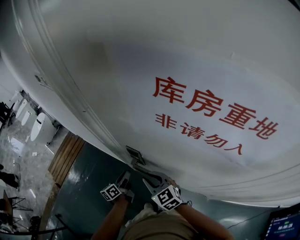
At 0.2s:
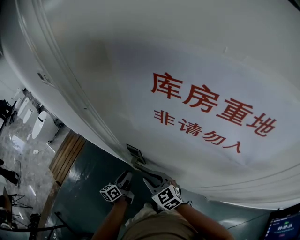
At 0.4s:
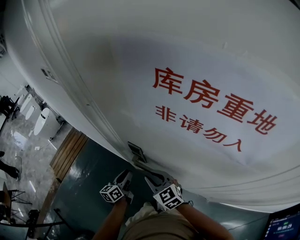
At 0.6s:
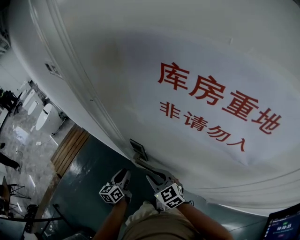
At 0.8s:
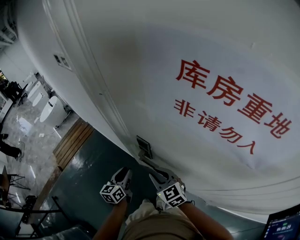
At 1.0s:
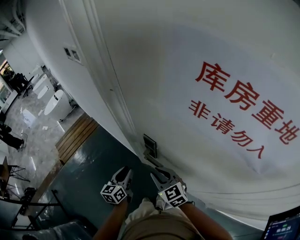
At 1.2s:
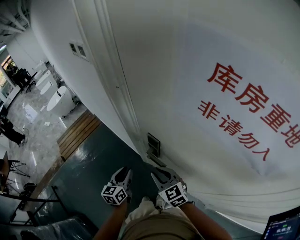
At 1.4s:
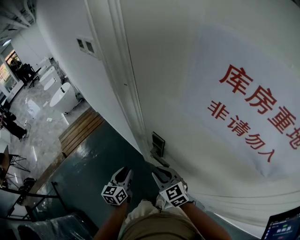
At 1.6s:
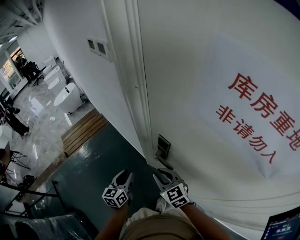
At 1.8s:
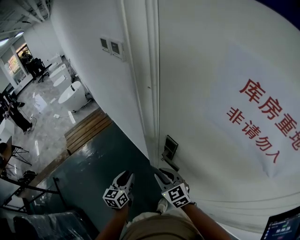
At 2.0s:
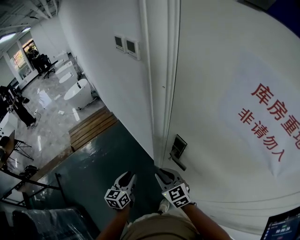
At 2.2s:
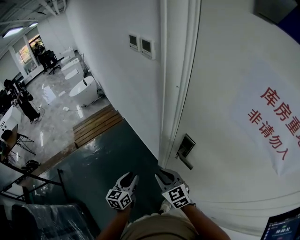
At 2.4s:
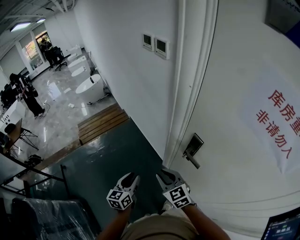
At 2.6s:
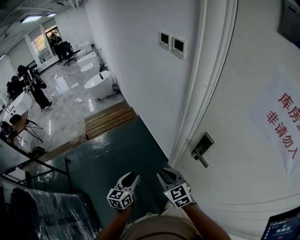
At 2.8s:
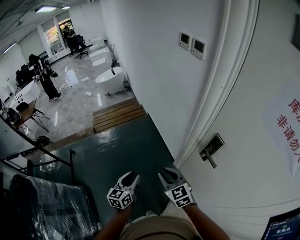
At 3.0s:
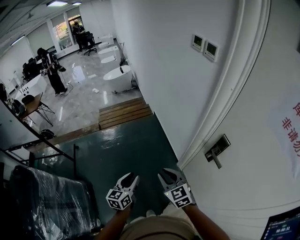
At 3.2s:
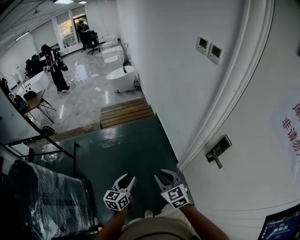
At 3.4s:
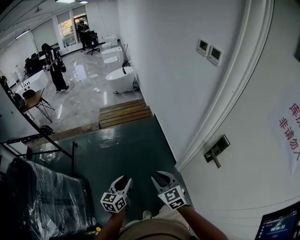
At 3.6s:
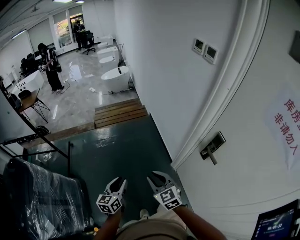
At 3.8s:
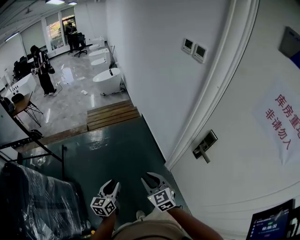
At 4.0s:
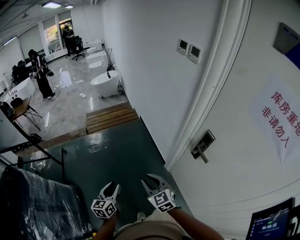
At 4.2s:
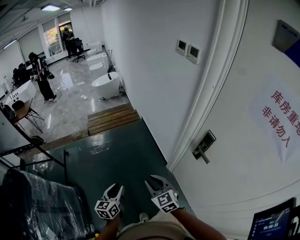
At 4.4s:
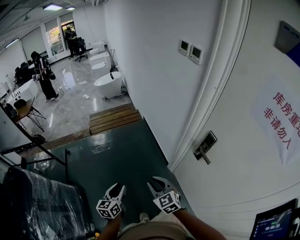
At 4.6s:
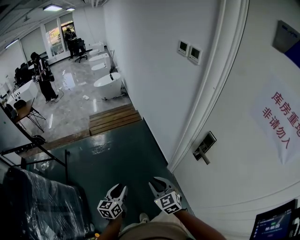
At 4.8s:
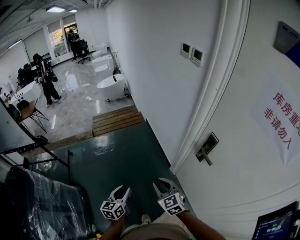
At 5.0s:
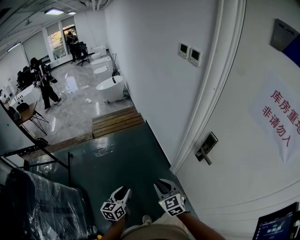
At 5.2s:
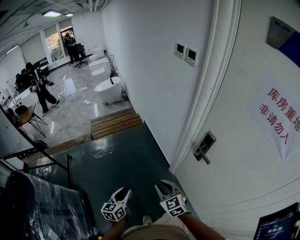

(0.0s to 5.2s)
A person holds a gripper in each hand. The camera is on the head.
0.0s - 1.8s: The right gripper heads to the left, covering some 10 cm, while the left gripper heads to the left, backward and upward, covering approximately 15 cm, and rotates some 40 degrees.
1.8s - 3.4s: The right gripper moves to the left, roughly 30 cm, and rotates approximately 20 degrees. The left gripper heads to the left and backward, covering some 30 cm, and rotates some 20 degrees.
3.4s - 5.2s: The left gripper ends up some 5 cm from where it was, while the right gripper is displaced to the right by approximately 5 cm.

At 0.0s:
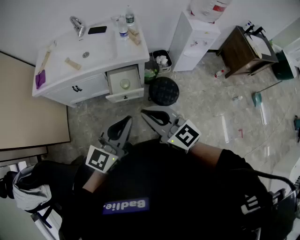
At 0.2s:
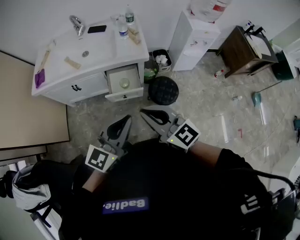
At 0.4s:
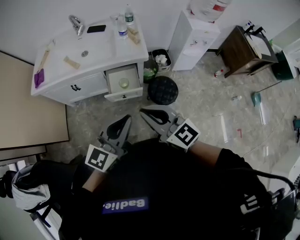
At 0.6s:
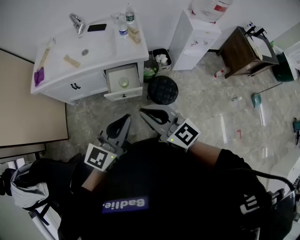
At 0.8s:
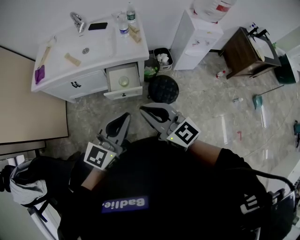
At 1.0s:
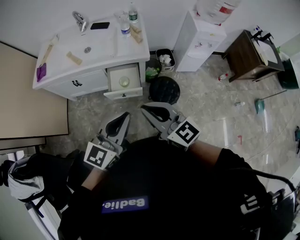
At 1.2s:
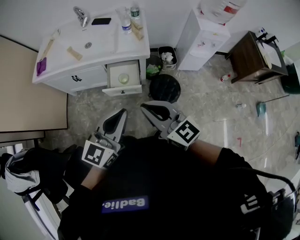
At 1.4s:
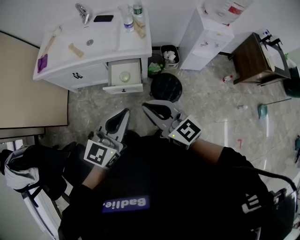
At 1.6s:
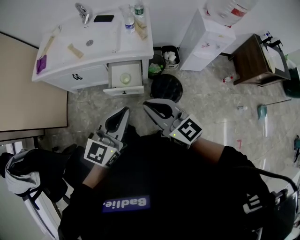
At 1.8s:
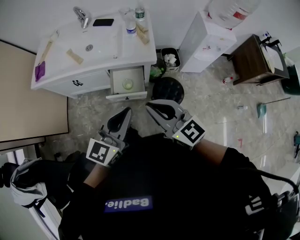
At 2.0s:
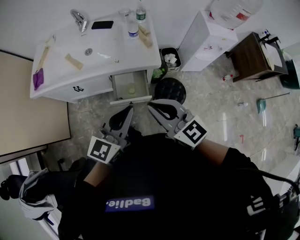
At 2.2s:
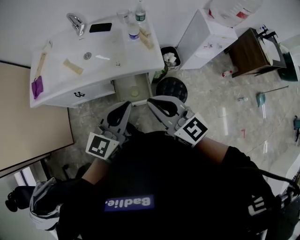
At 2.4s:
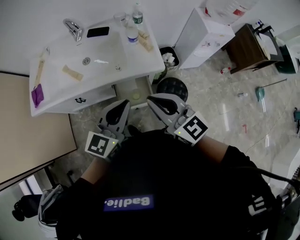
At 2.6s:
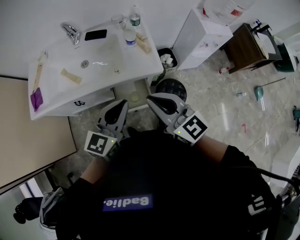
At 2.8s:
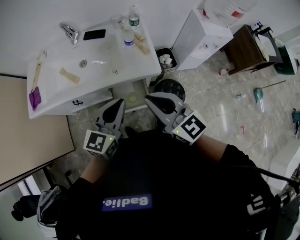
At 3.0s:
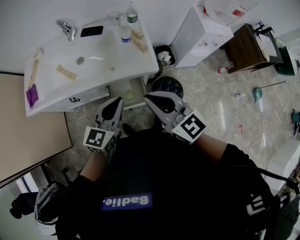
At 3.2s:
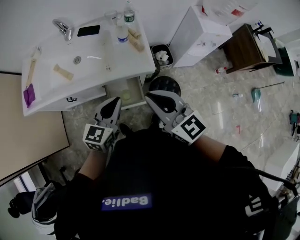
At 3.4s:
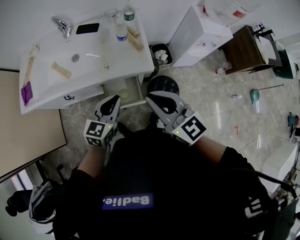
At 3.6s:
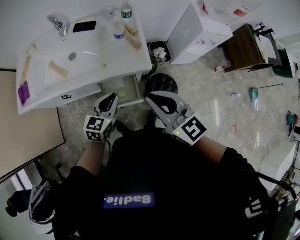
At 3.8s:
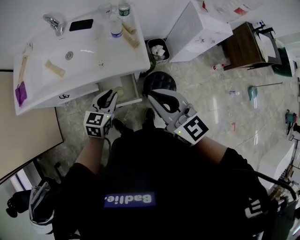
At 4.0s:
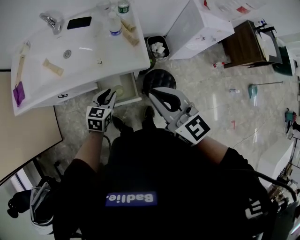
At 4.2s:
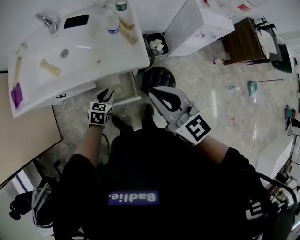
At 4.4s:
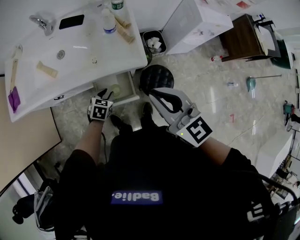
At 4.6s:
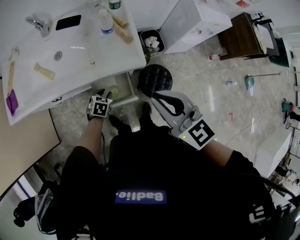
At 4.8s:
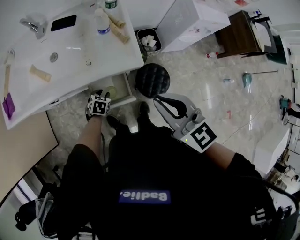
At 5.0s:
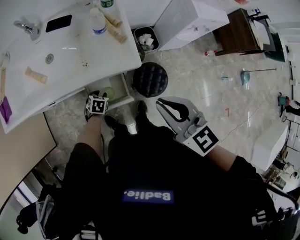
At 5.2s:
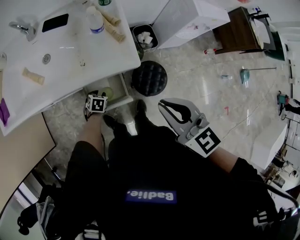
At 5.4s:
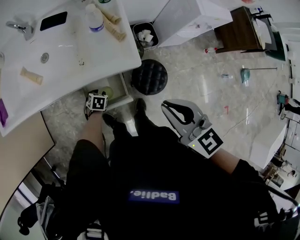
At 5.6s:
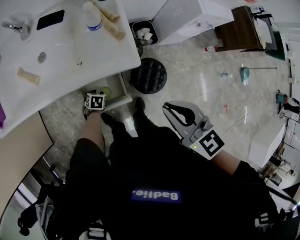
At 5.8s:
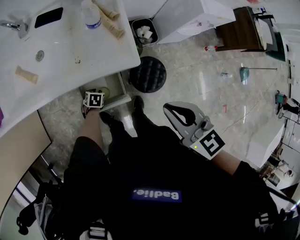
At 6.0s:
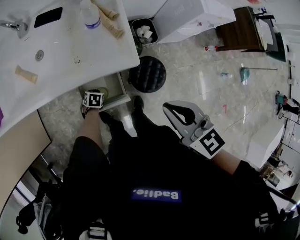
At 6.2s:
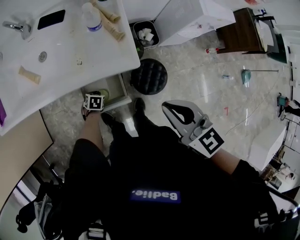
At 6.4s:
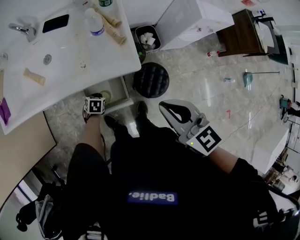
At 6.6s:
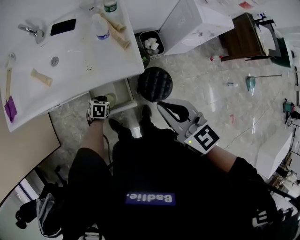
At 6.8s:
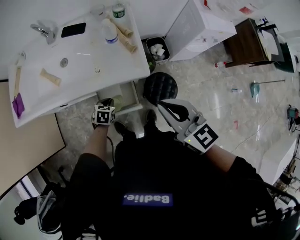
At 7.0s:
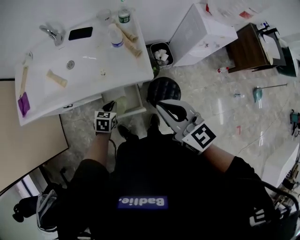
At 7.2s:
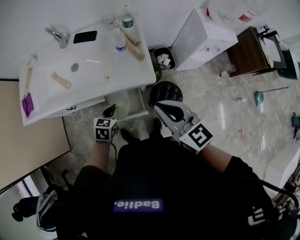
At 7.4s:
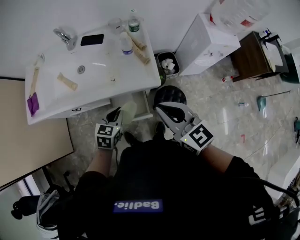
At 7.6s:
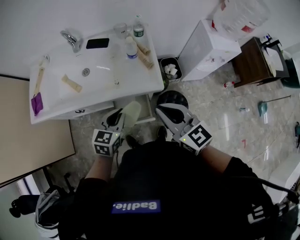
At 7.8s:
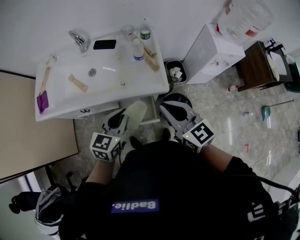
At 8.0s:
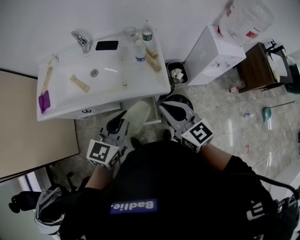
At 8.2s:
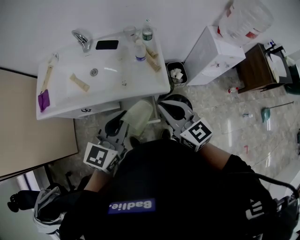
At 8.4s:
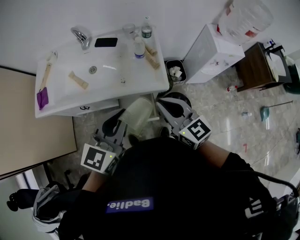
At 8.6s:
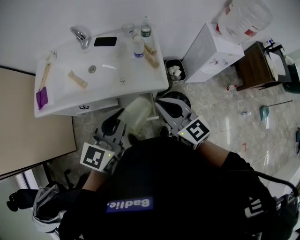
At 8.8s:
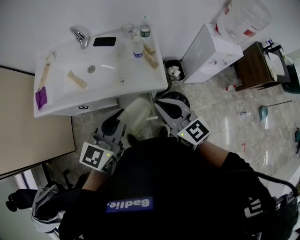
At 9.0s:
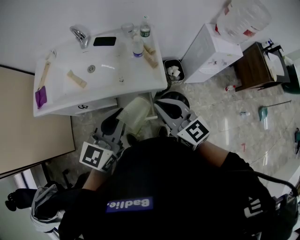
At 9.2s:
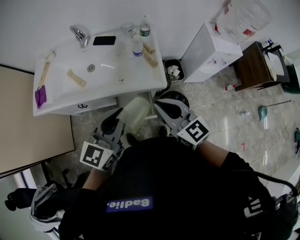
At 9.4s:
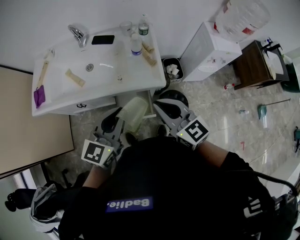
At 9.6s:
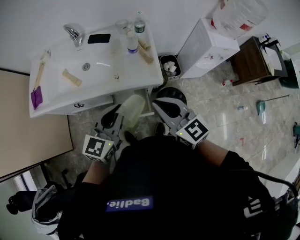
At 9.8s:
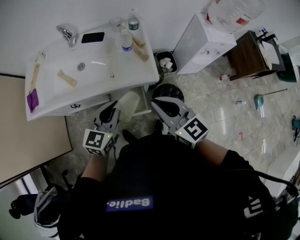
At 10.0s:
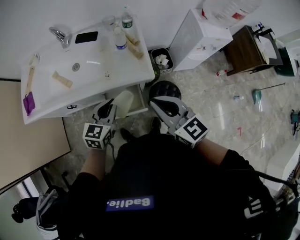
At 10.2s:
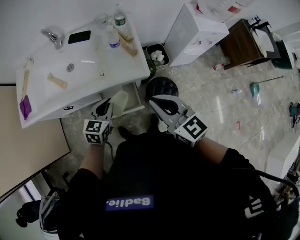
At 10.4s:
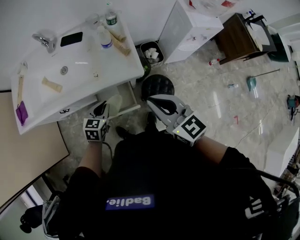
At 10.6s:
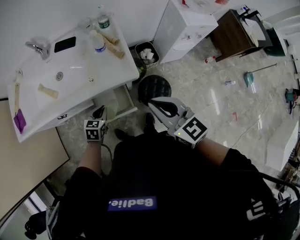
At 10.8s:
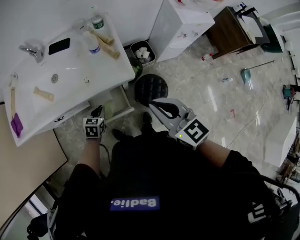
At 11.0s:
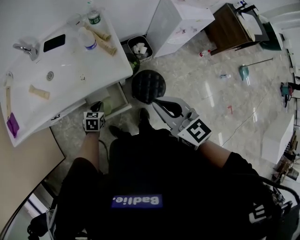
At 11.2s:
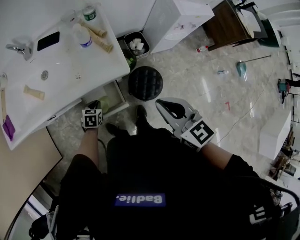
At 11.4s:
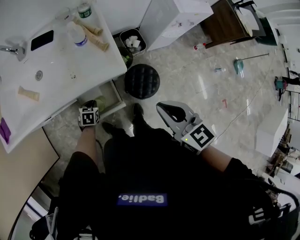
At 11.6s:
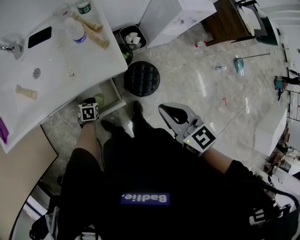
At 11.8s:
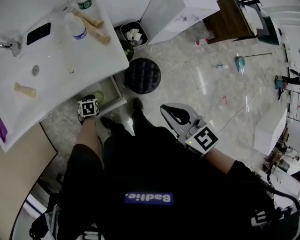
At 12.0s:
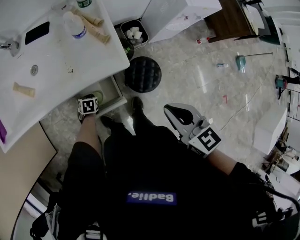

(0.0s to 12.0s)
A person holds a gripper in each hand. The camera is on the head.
0.0s - 1.6s: The left gripper moves forward, roughly 5 cm; the right gripper travels to the right and forward by roughly 10 cm.
1.6s - 3.0s: The right gripper moves forward, some 20 cm, while the left gripper moves forward and to the left, approximately 25 cm.
3.0s - 4.4s: The left gripper travels downward by about 30 cm, points its fingers about 40 degrees further downward, and opens its fingers, while the right gripper is displaced to the right by approximately 5 cm.
4.4s - 6.0s: The left gripper moves downward, roughly 15 cm, rotates roughly 20 degrees, and closes. Meanwhile the right gripper moves downward, roughly 5 cm.
6.0s - 7.6s: The left gripper goes approximately 40 cm upward, and angles its fingers upward, by approximately 40 degrees. Meanwhile the right gripper changes place by roughly 10 cm.
7.6s - 9.0s: The left gripper goes approximately 15 cm upward, and swivels roughly 20 degrees.
9.0s - 10.4s: The right gripper moves to the right, roughly 5 cm. Meanwhile the left gripper is displaced downward by about 25 cm, and tilts its fingers roughly 30 degrees downward.
10.4s - 12.0s: The left gripper heads downward, covering about 25 cm, and angles its fingers downward, by some 30 degrees; the right gripper moves approximately 10 cm, and changes its angle by approximately 20 degrees.

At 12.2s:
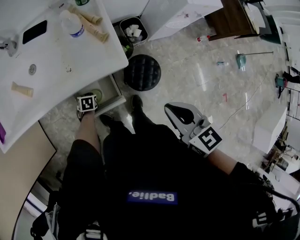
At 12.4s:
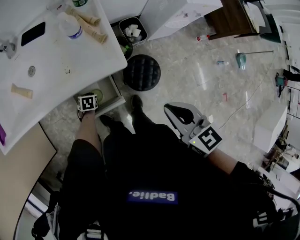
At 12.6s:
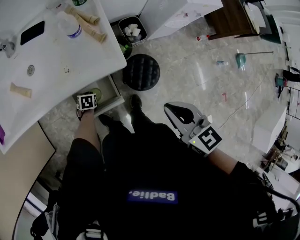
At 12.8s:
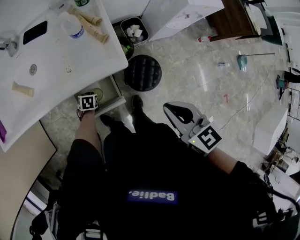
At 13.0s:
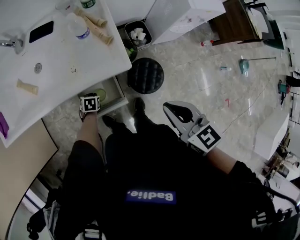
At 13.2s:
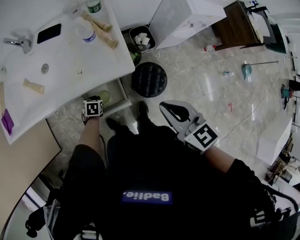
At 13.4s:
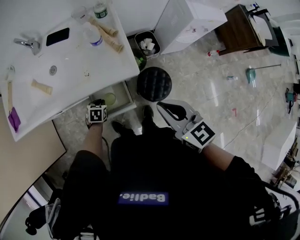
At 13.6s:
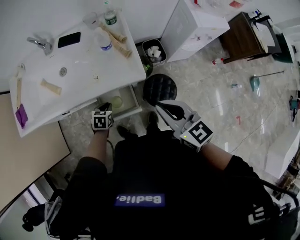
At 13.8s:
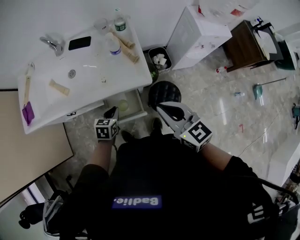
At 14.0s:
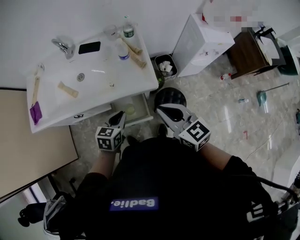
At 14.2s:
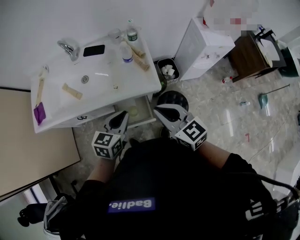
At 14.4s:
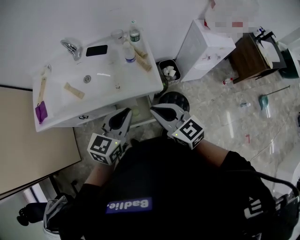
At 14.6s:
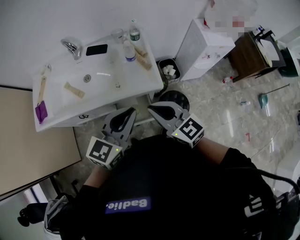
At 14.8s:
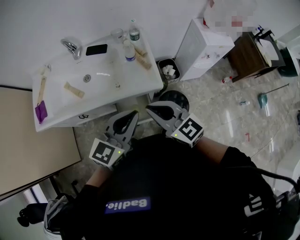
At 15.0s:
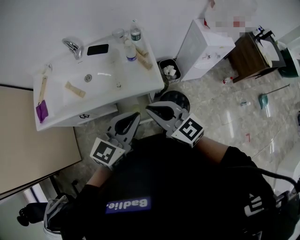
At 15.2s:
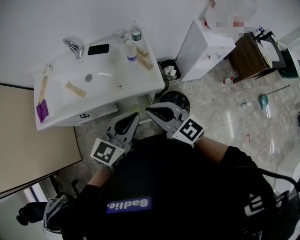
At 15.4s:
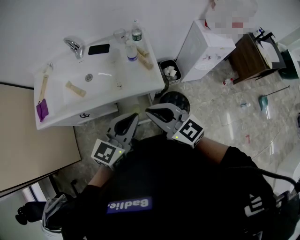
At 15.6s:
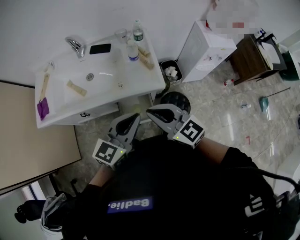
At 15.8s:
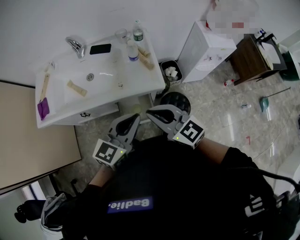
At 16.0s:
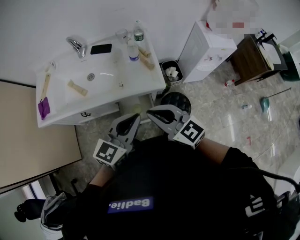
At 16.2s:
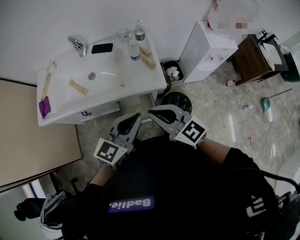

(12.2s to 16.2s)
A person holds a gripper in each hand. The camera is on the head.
12.2s - 13.6s: The right gripper shifts by about 10 cm; the left gripper goes some 15 cm upward.
13.6s - 14.8s: The left gripper moves upward, about 40 cm, and tips its fingers upward by about 50 degrees; the right gripper is displaced to the left and upward by roughly 15 cm.
14.8s - 16.2s: The grippers move only a little.

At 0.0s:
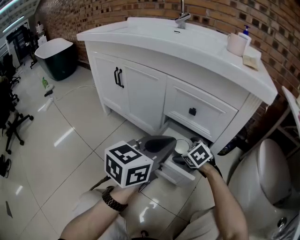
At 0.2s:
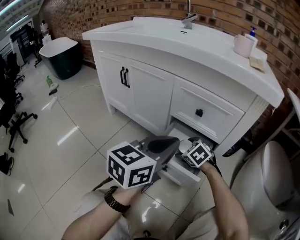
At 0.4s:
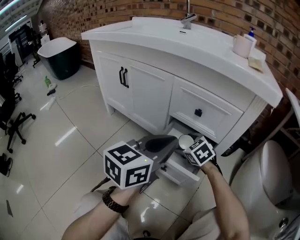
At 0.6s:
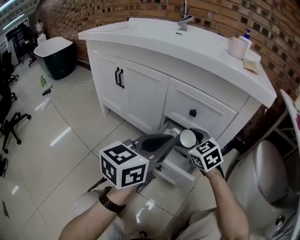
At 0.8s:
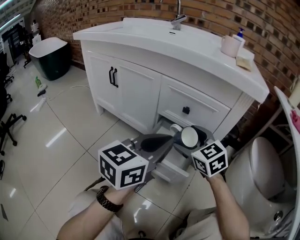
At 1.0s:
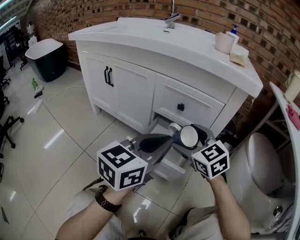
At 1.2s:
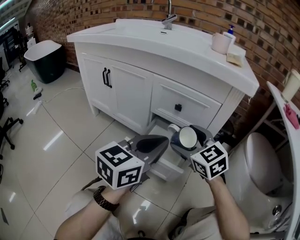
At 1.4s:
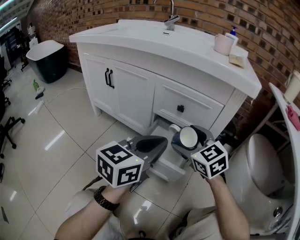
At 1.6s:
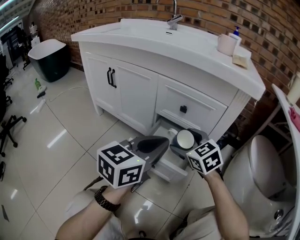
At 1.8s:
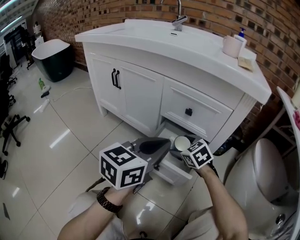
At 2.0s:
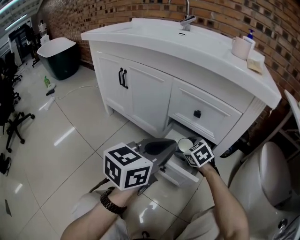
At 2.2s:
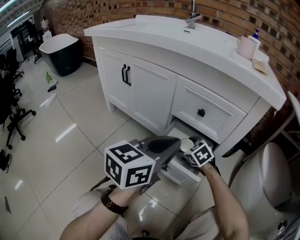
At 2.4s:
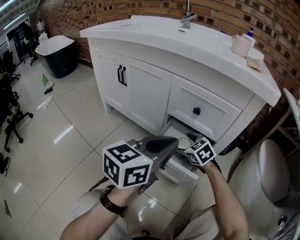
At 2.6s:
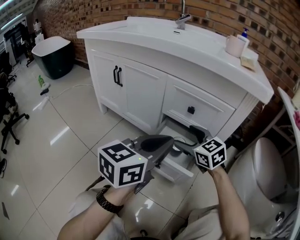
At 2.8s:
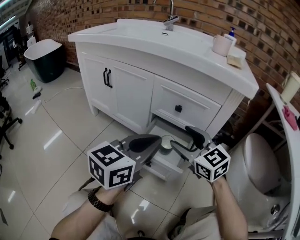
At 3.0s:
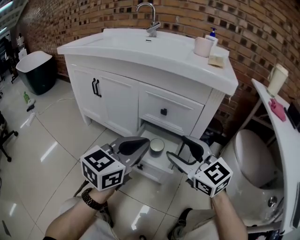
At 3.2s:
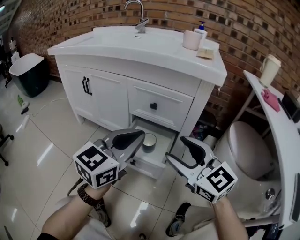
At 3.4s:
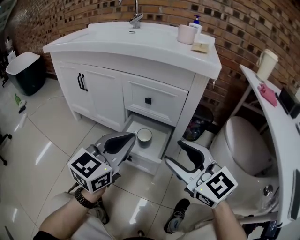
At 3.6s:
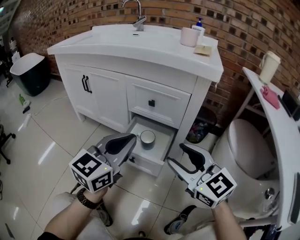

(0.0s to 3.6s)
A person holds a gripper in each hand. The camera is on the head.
0.0s - 1.8s: The right gripper moves about 20 cm upward and comes back.
1.8s - 3.6s: The right gripper goes approximately 30 cm upward, backward and to the right, and angles its fingers upward, by roughly 40 degrees.
